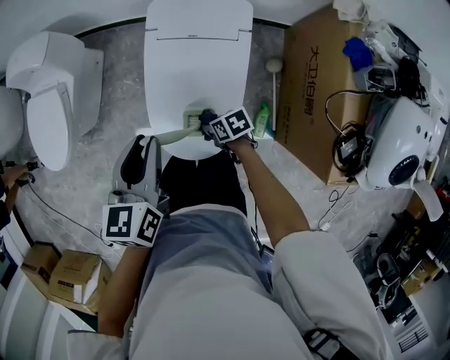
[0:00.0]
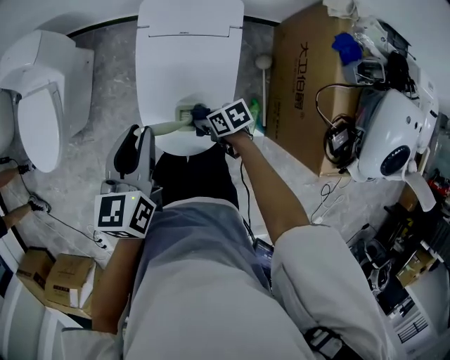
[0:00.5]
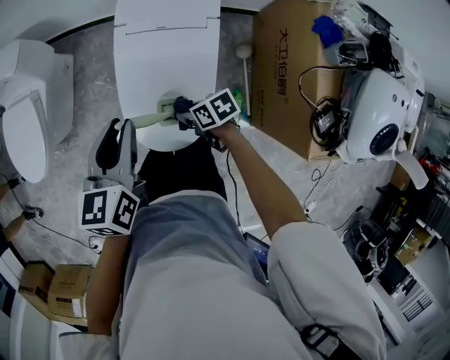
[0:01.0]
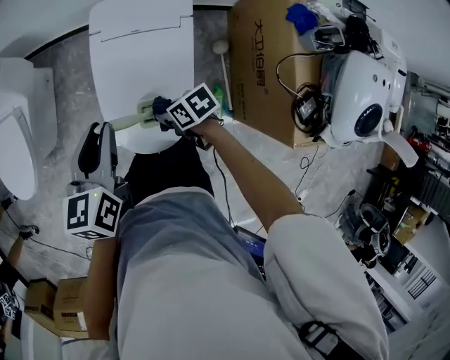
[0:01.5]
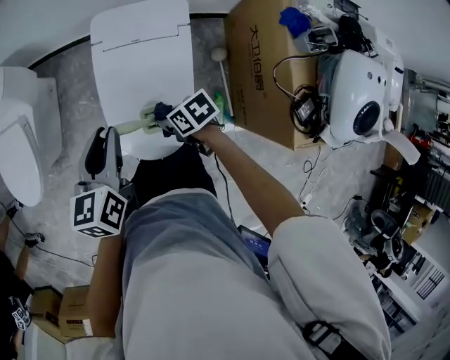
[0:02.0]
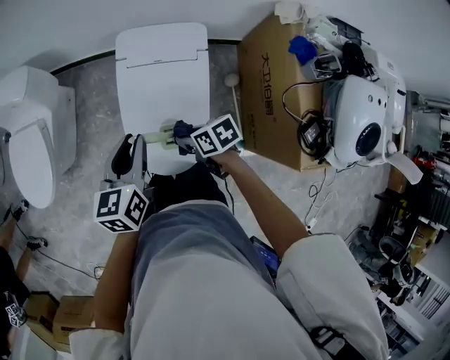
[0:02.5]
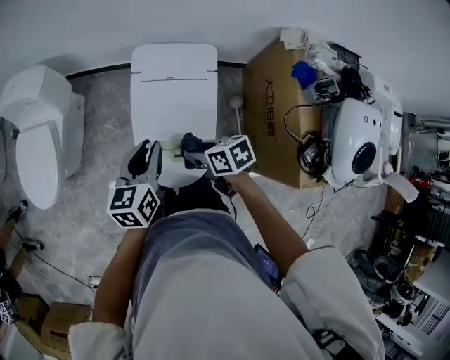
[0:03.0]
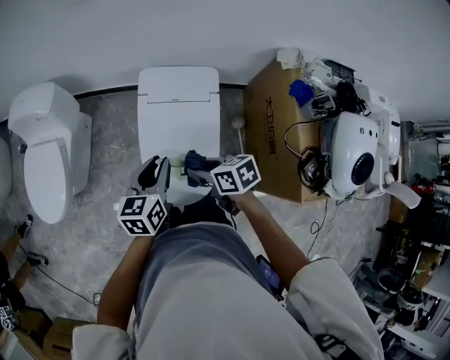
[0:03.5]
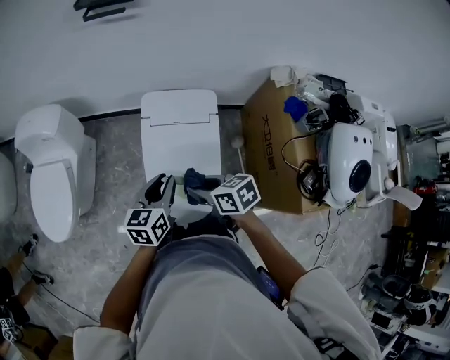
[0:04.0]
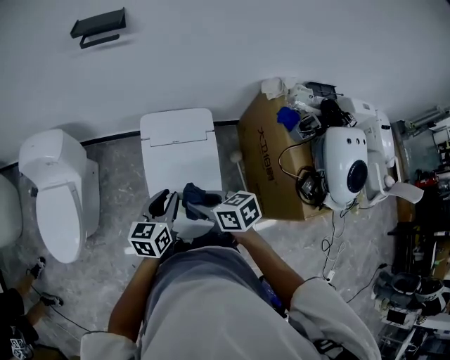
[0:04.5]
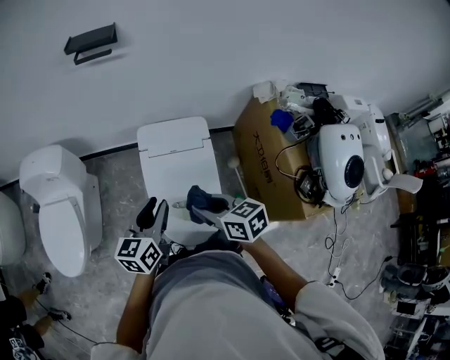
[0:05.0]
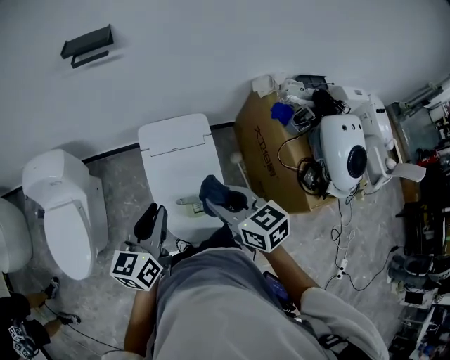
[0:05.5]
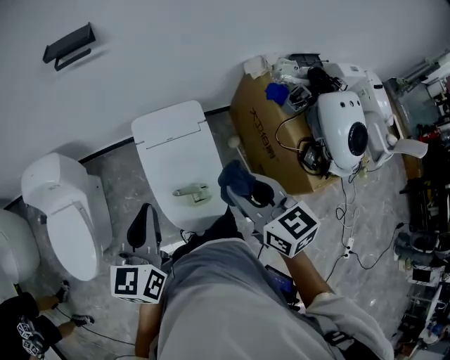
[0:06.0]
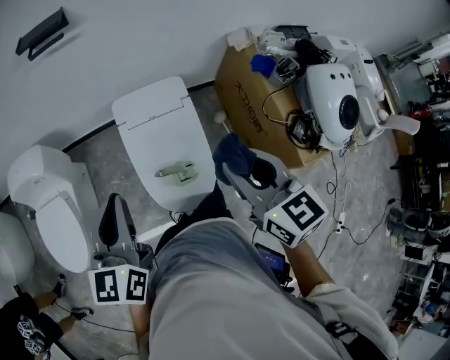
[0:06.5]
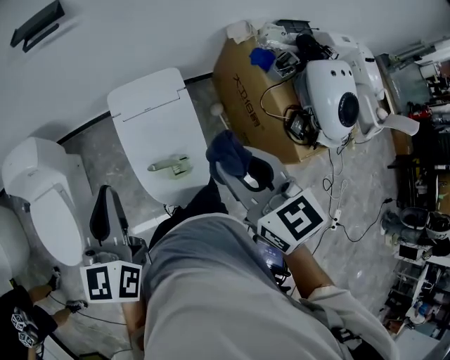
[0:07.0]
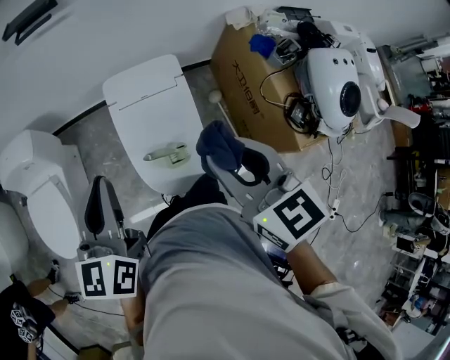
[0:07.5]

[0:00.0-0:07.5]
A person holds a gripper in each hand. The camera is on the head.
0:00.0 to 0:02.0: The right gripper is displaced upward by about 10 cm.
0:02.0 to 0:04.0: The right gripper goes roughly 20 cm upward.
0:04.0 to 0:05.5: The grippers both shift upward by some 15 cm. The right gripper rotates about 30 degrees.
0:05.5 to 0:07.5: The left gripper goes roughly 5 cm upward. Meanwhile the right gripper shifts roughly 10 cm upward and to the right.

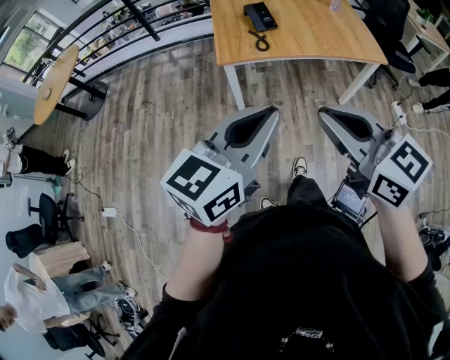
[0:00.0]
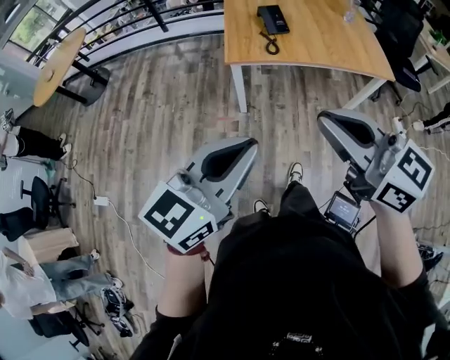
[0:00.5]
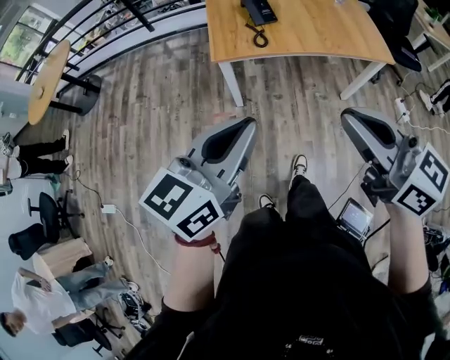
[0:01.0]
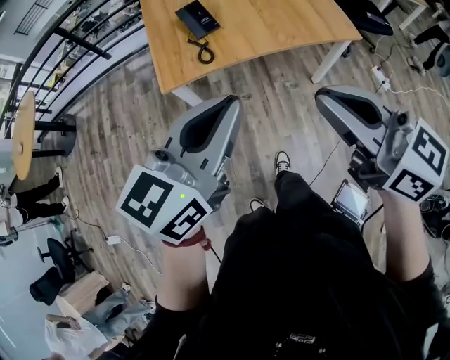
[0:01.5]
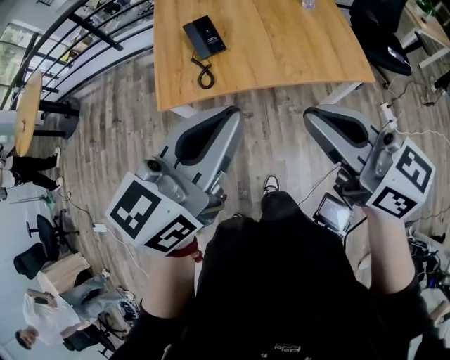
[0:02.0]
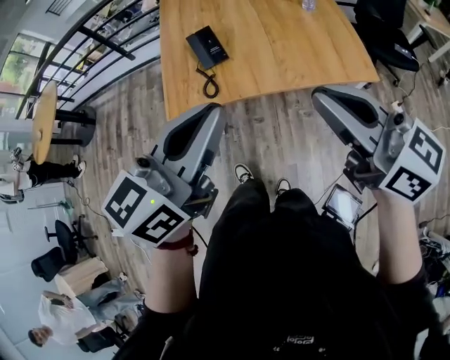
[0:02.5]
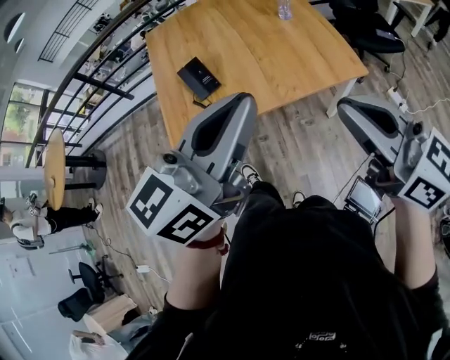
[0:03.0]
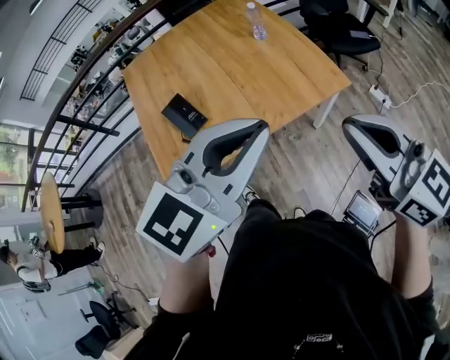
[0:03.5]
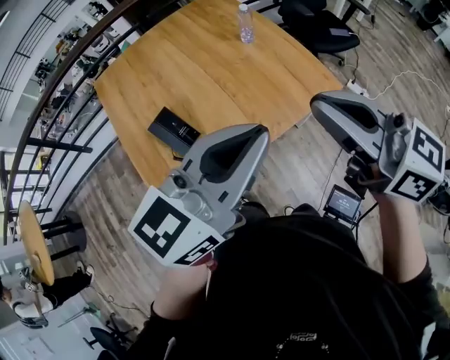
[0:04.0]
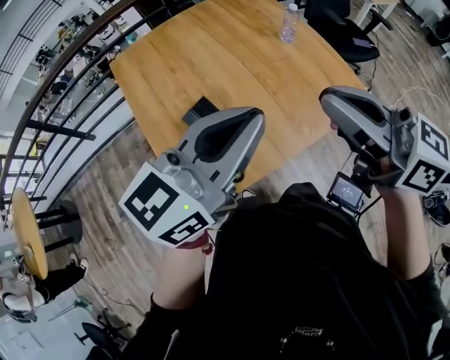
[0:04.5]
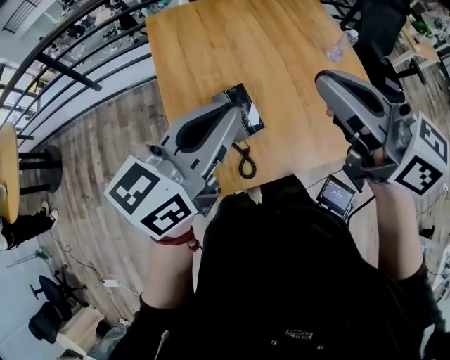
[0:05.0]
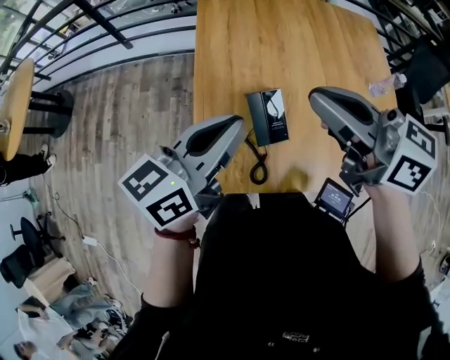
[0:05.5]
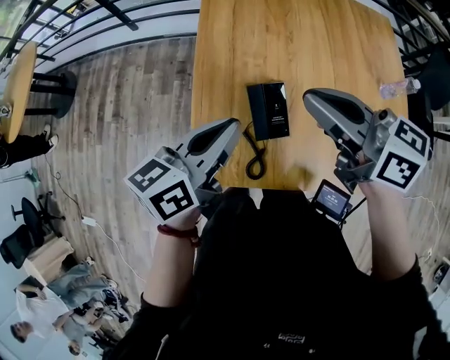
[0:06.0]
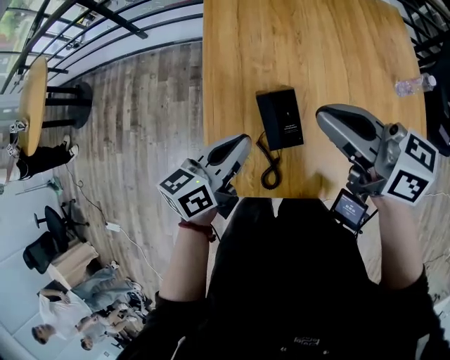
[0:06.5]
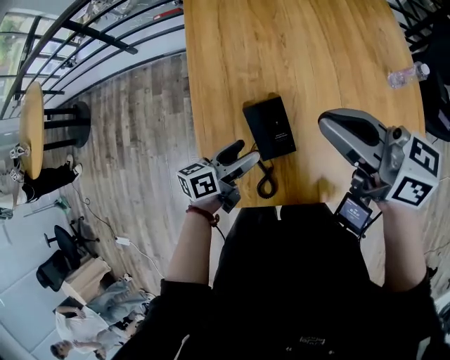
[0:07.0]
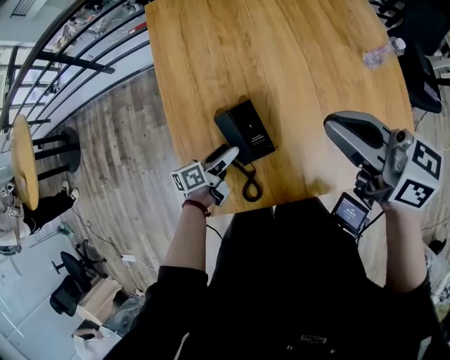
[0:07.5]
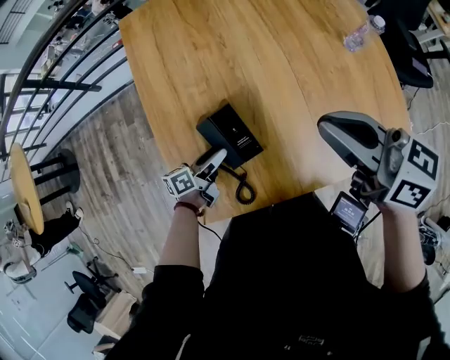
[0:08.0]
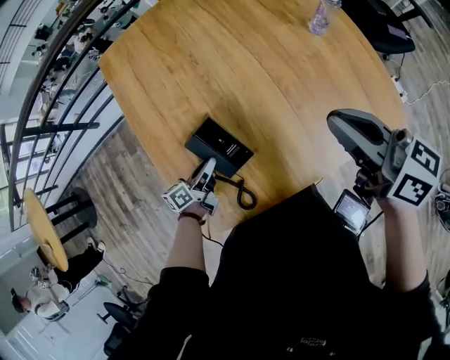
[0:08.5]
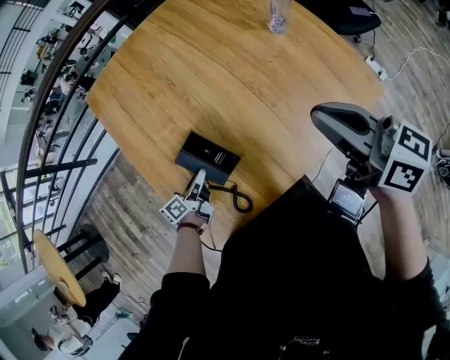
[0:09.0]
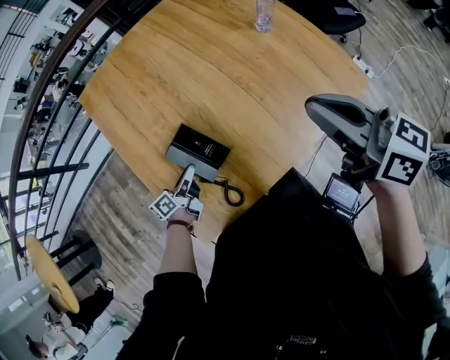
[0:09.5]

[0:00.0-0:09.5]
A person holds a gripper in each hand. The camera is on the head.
0:00.0 to 0:02.0: The two grippers go some 30 cm forward and to the right.
0:02.0 to 0:04.0: The left gripper shifts by approximately 20 cm, and turns by approximately 30 degrees; the right gripper moves some 20 cm, and rotates roughly 20 degrees.
0:04.0 to 0:05.5: The right gripper shifts by about 35 cm, and turns by approximately 40 degrees. Meanwhile the left gripper ends up roughly 35 cm from where it was, and swivels about 40 degrees.
0:05.5 to 0:07.5: The right gripper moves to the right and downward, some 15 cm. The left gripper is displaced downward by some 35 cm, rotates approximately 40 degrees, and opens up.
0:07.5 to 0:09.5: The right gripper shifts roughly 15 cm to the right and backward, and turns by approximately 30 degrees; the left gripper closes its fingers.

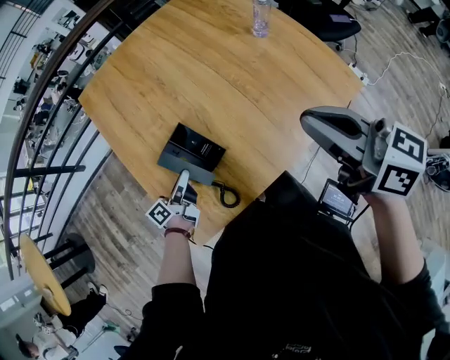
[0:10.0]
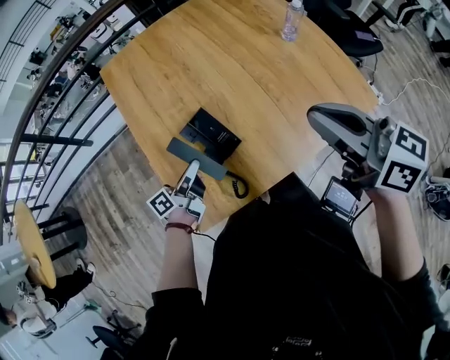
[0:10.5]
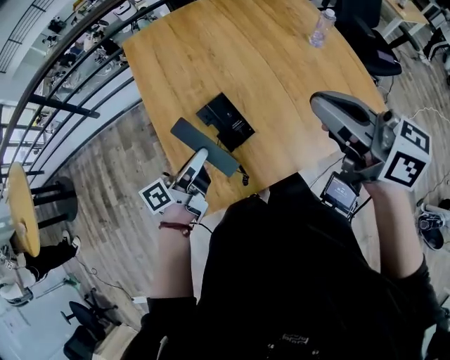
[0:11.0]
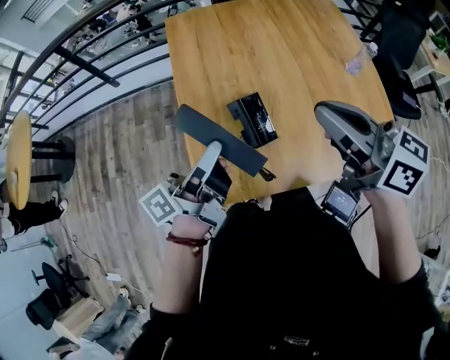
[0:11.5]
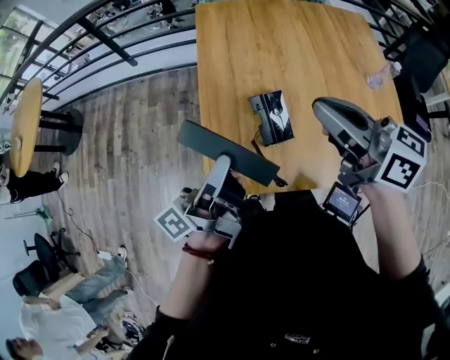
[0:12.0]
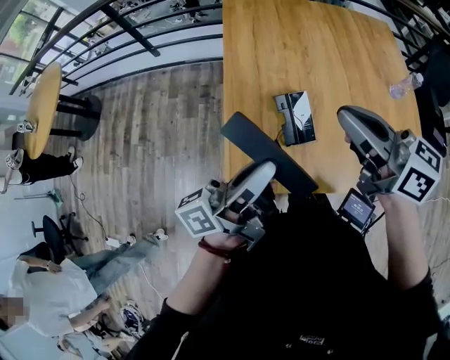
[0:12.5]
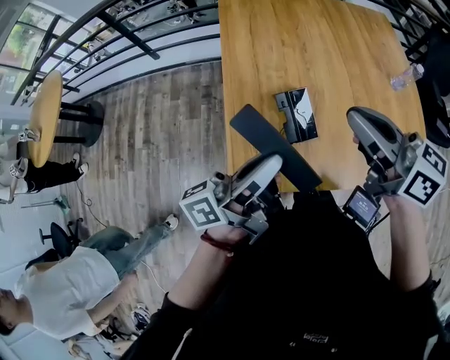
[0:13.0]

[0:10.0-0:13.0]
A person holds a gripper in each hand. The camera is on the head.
0:10.0 to 0:11.5: The right gripper moves to the left, some 15 cm, and changes its angle by some 20 degrees. Meanwhile the left gripper moves upward, some 25 cm, and rotates approximately 30 degrees.
0:11.5 to 0:13.0: The left gripper shifts by roughly 5 cm.

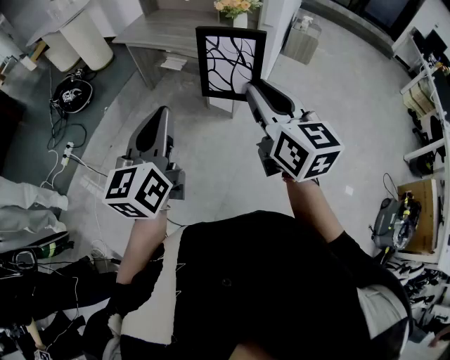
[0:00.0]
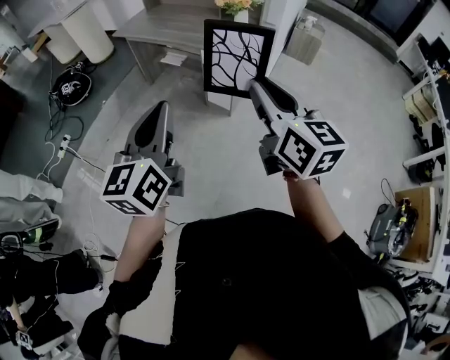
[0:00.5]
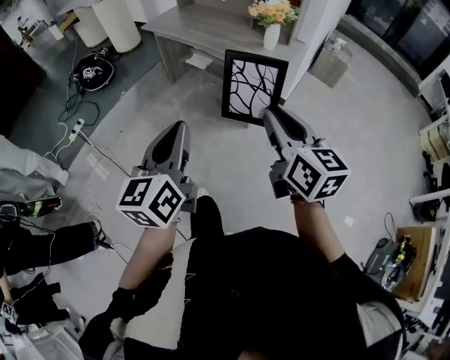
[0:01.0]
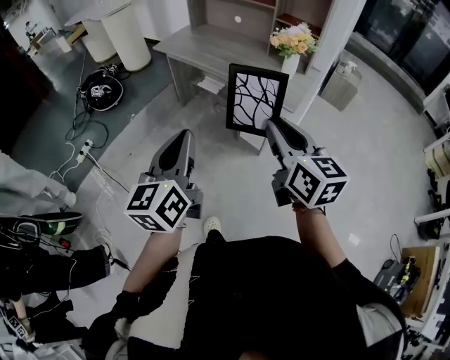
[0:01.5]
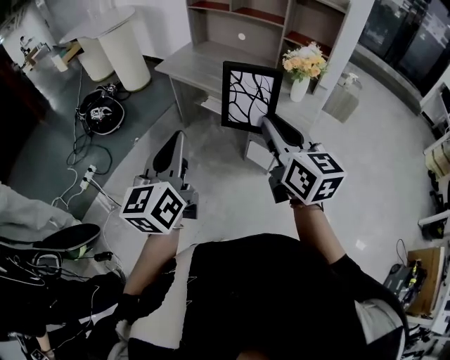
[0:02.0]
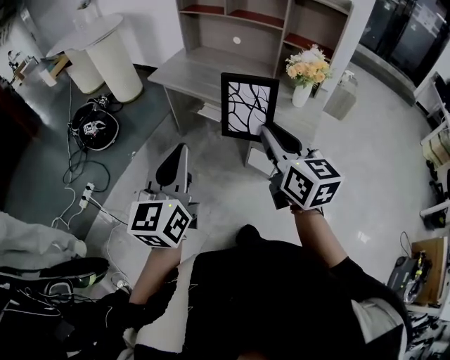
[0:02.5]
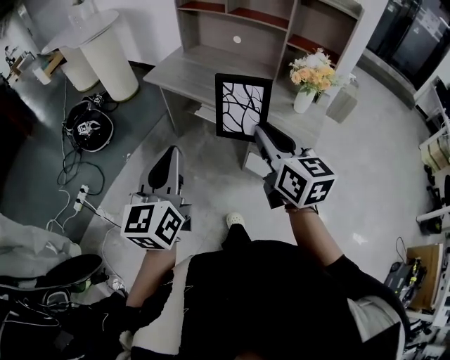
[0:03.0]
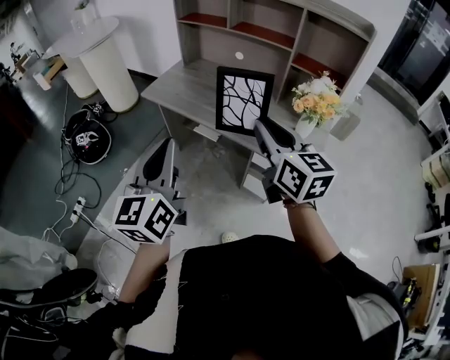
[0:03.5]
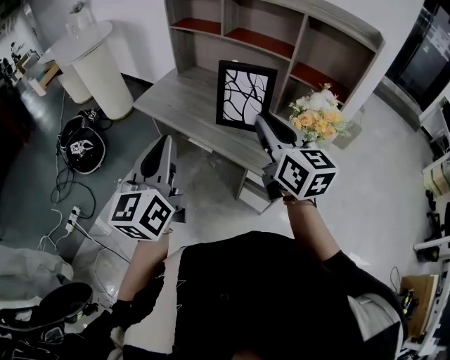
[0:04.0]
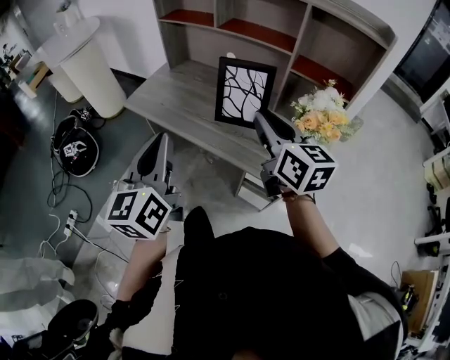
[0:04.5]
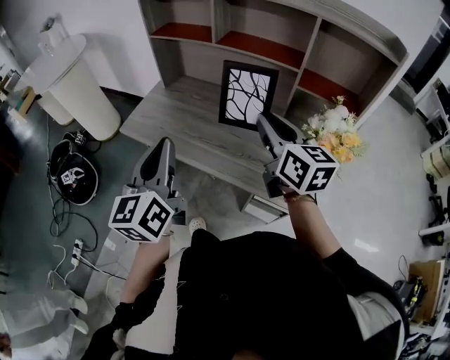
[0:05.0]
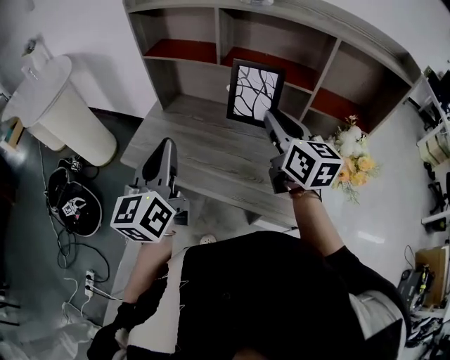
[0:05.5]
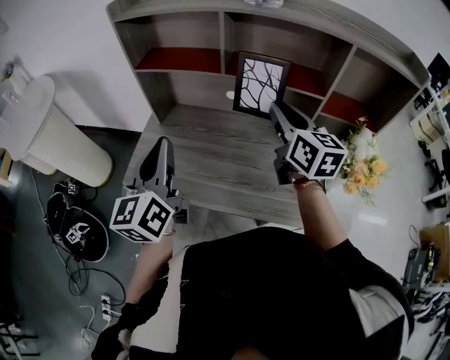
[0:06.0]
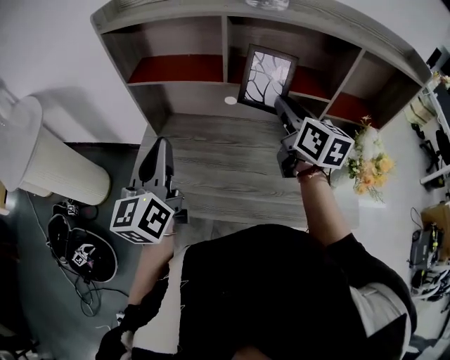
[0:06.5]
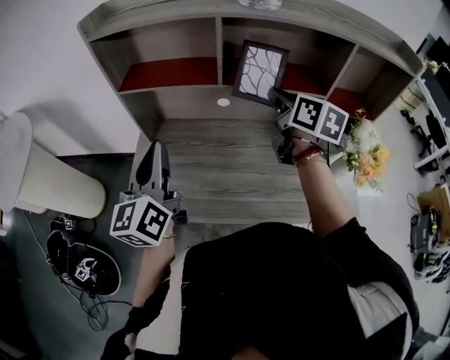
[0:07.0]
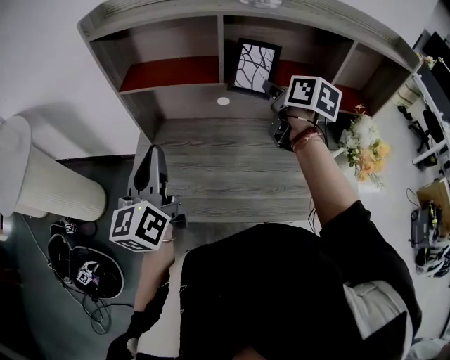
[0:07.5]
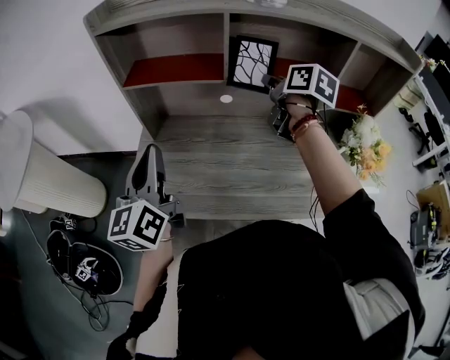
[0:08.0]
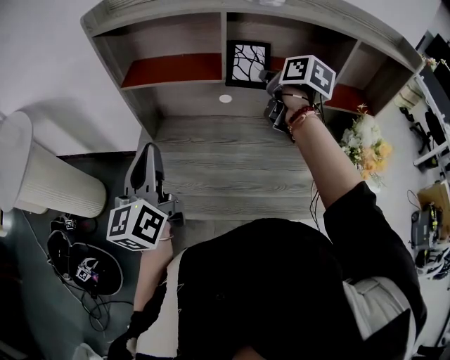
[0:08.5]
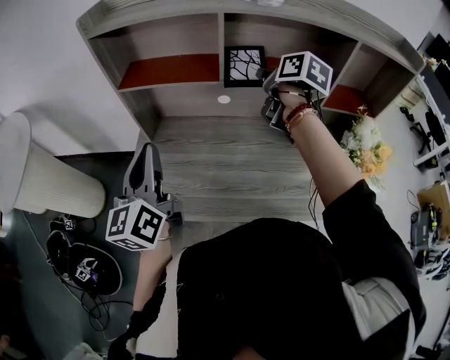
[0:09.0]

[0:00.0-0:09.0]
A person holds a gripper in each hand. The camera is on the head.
0:00.0 to 0:02.0: The two grippers go roughly 25 cm forward and to the left.
0:02.0 to 0:04.5: The grippers both shift forward by approximately 35 cm.
0:04.5 to 0:07.0: The right gripper moves approximately 35 cm, and turns by some 40 degrees; the left gripper shifts by about 40 cm, and turns by about 20 degrees.
0:07.0 to 0:09.0: The right gripper goes approximately 5 cm forward.
